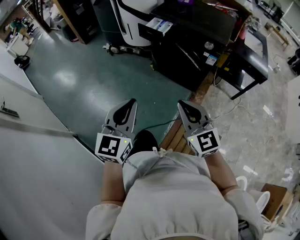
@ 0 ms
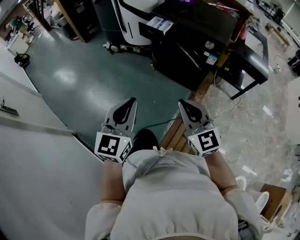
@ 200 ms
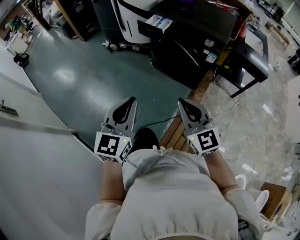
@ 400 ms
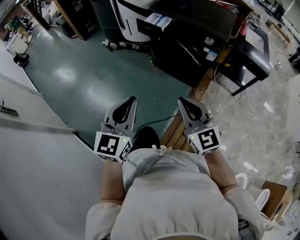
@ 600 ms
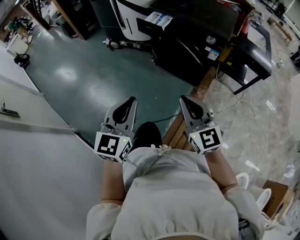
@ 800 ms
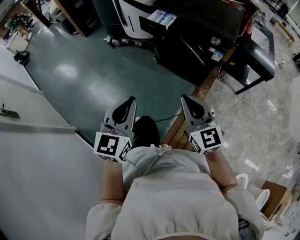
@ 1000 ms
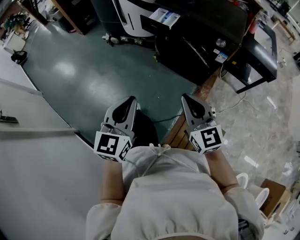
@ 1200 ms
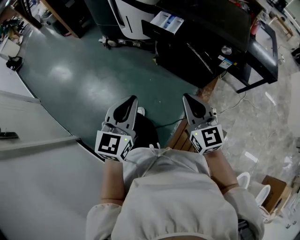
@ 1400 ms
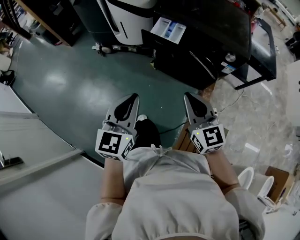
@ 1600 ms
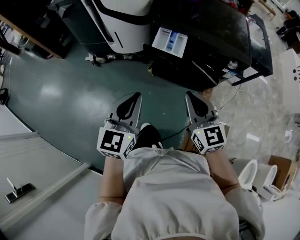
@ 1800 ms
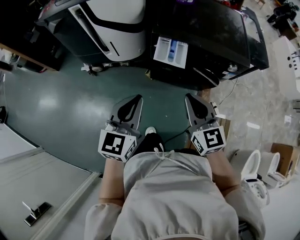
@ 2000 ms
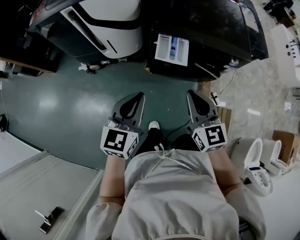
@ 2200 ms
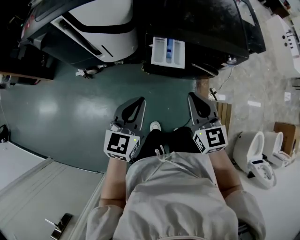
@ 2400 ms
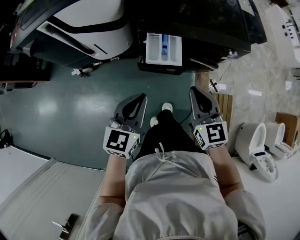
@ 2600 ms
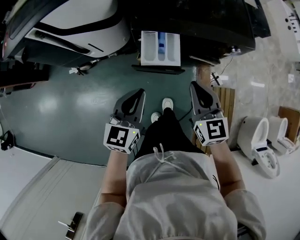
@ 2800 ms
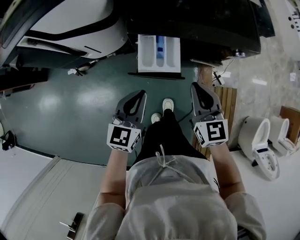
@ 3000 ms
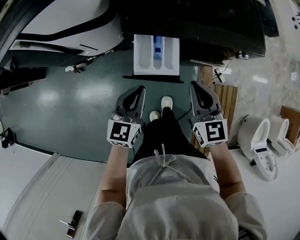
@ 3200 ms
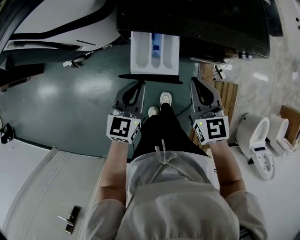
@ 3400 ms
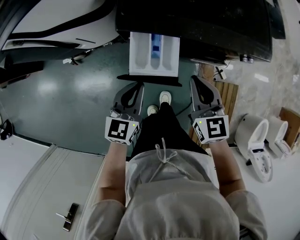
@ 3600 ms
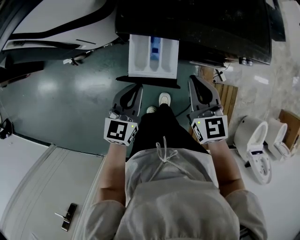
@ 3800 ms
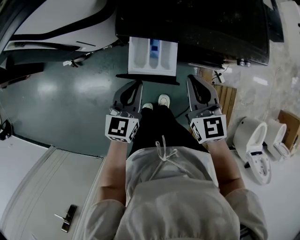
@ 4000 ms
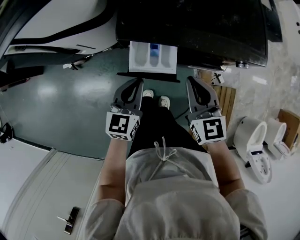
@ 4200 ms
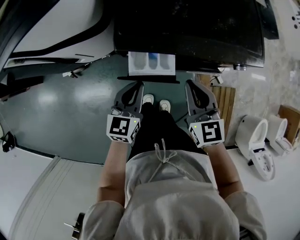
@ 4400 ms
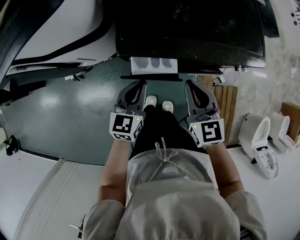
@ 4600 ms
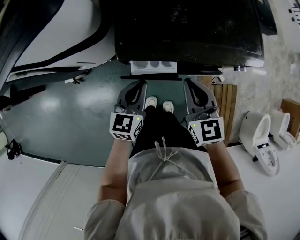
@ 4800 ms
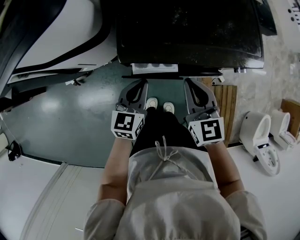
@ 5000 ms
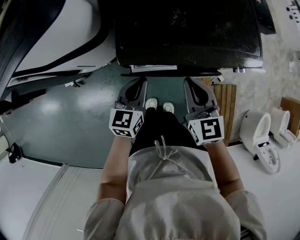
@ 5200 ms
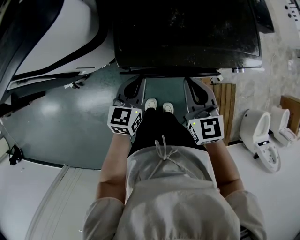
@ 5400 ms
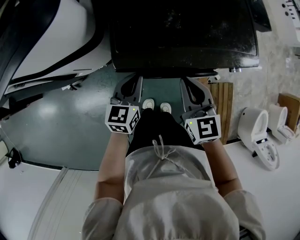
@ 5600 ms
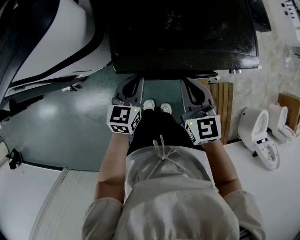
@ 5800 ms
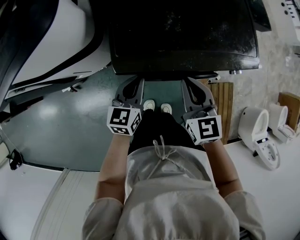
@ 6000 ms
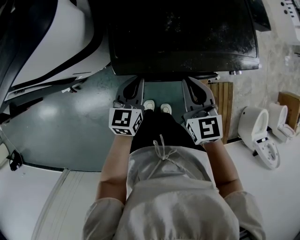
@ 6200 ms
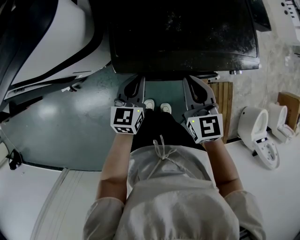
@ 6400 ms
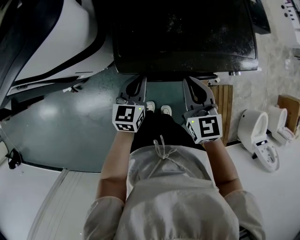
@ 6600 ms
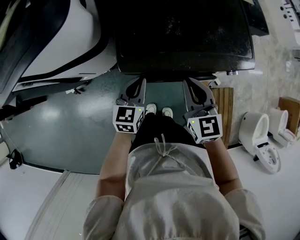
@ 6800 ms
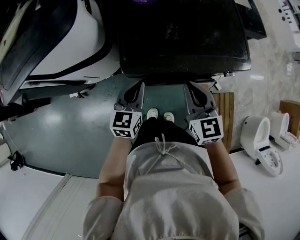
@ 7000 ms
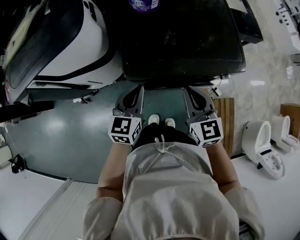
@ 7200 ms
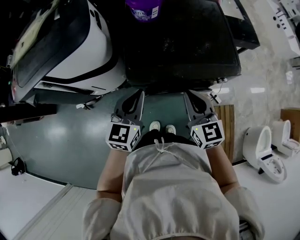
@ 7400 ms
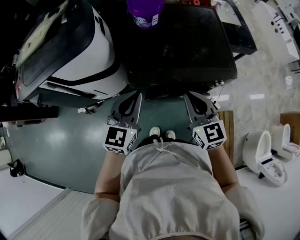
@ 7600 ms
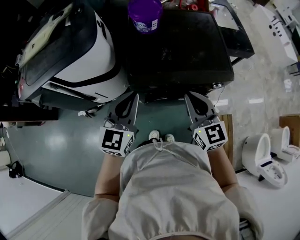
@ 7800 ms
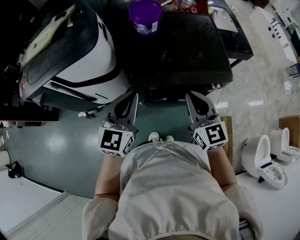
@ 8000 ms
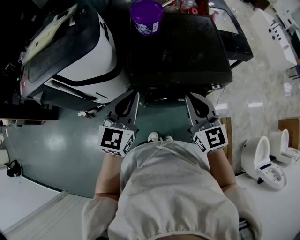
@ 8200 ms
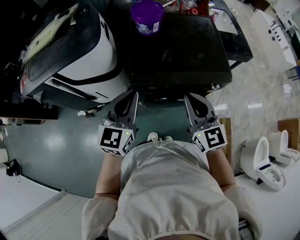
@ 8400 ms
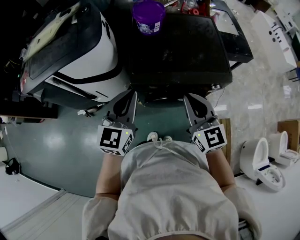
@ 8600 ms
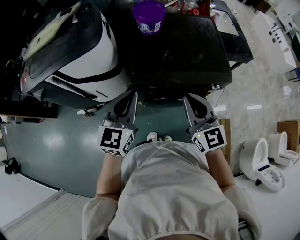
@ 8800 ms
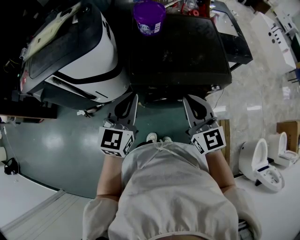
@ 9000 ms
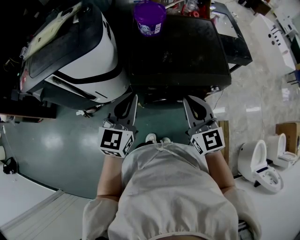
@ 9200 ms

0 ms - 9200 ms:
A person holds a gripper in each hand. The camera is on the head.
0 ms - 1600 ms: Both grippers travel together forward, approximately 25 cm.
1600 ms - 3000 ms: The right gripper ends up about 25 cm from where it was, and changes its angle by roughly 30 degrees. The left gripper moves some 30 cm, and swivels roughly 30 degrees.
3000 ms - 4600 ms: The left gripper goes roughly 15 cm forward and downward; the right gripper travels forward by approximately 10 cm.
4600 ms - 6200 ms: The two grippers go approximately 5 cm forward.
6200 ms - 7600 ms: The right gripper moves upward and backward, some 15 cm, while the left gripper shifts some 20 cm upward.
7600 ms - 9200 ms: Both grippers travel together upward, approximately 5 cm.

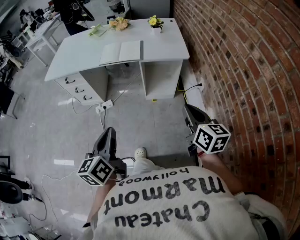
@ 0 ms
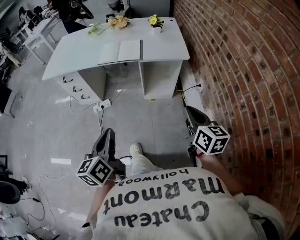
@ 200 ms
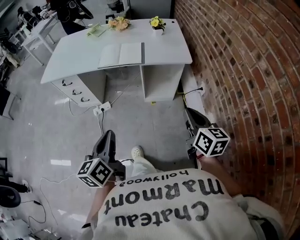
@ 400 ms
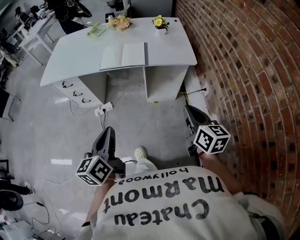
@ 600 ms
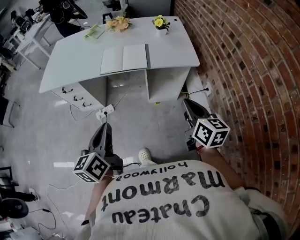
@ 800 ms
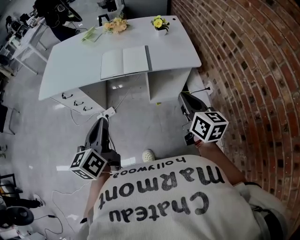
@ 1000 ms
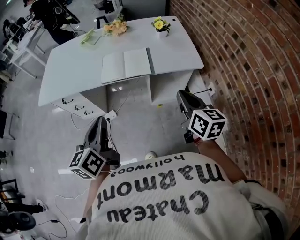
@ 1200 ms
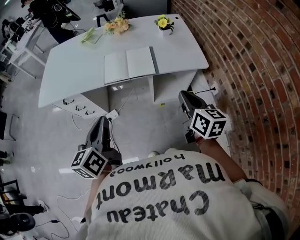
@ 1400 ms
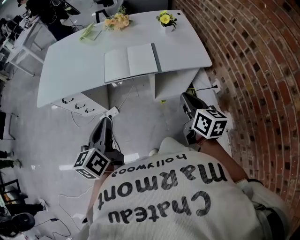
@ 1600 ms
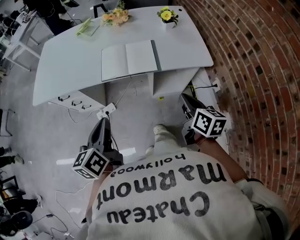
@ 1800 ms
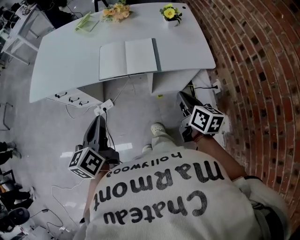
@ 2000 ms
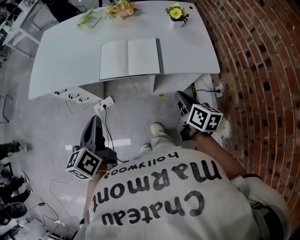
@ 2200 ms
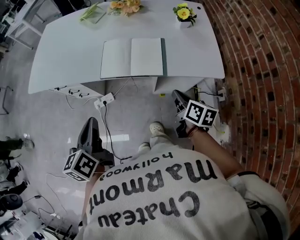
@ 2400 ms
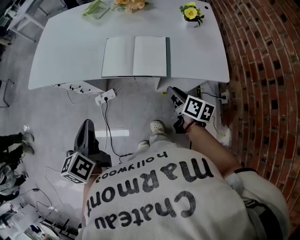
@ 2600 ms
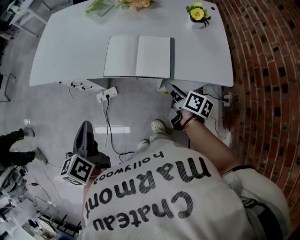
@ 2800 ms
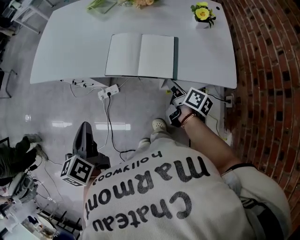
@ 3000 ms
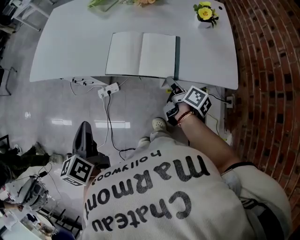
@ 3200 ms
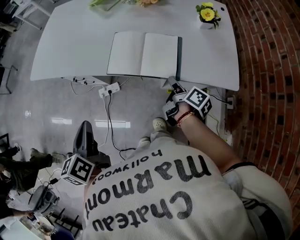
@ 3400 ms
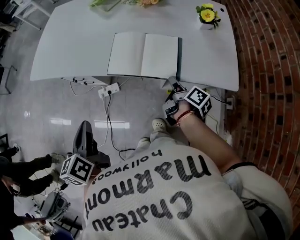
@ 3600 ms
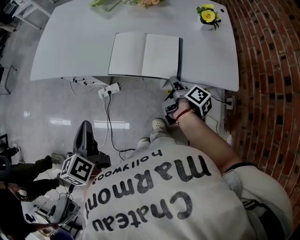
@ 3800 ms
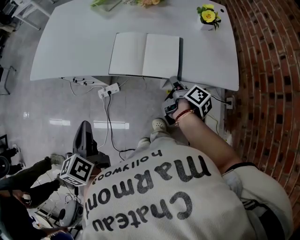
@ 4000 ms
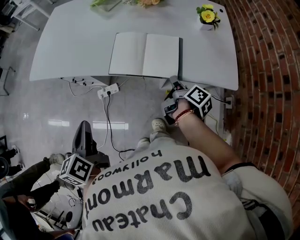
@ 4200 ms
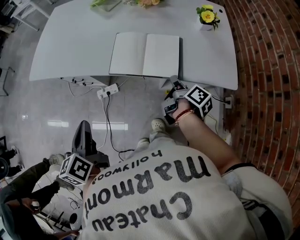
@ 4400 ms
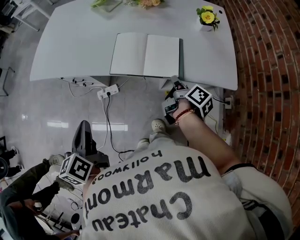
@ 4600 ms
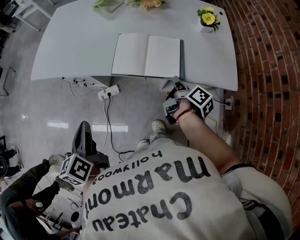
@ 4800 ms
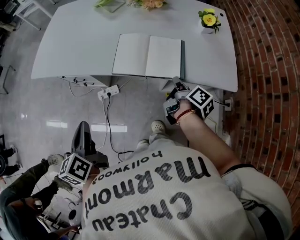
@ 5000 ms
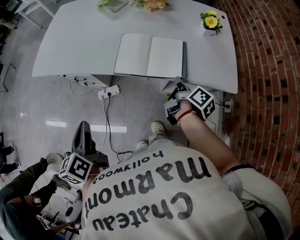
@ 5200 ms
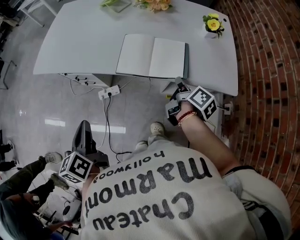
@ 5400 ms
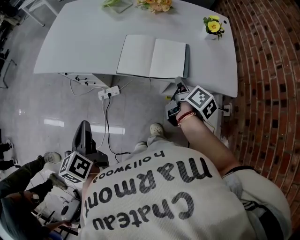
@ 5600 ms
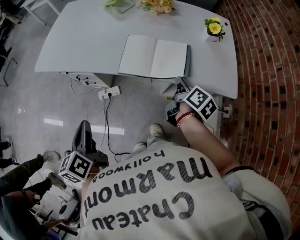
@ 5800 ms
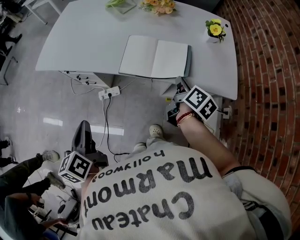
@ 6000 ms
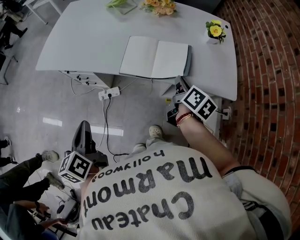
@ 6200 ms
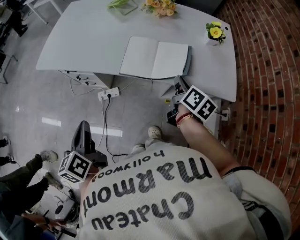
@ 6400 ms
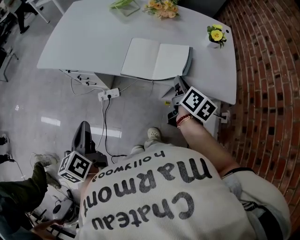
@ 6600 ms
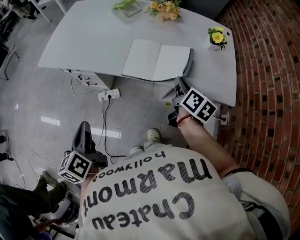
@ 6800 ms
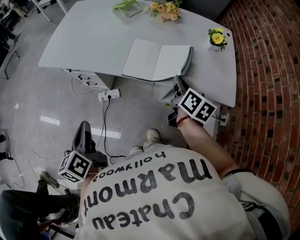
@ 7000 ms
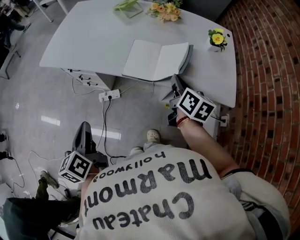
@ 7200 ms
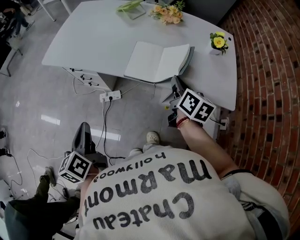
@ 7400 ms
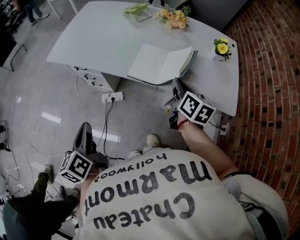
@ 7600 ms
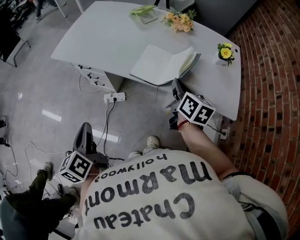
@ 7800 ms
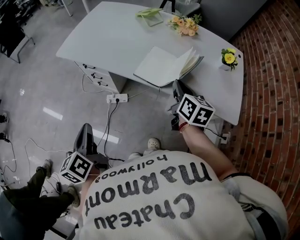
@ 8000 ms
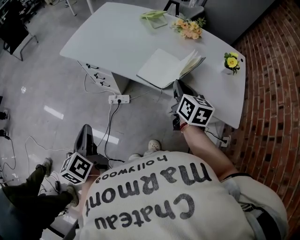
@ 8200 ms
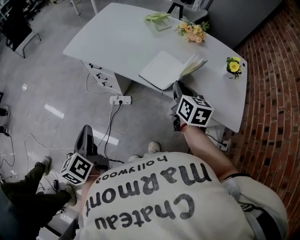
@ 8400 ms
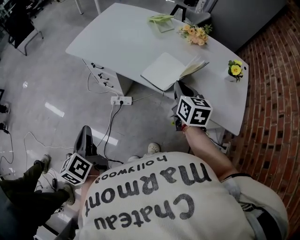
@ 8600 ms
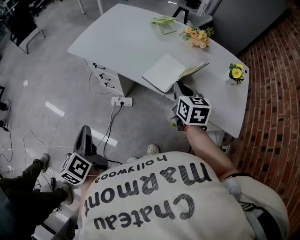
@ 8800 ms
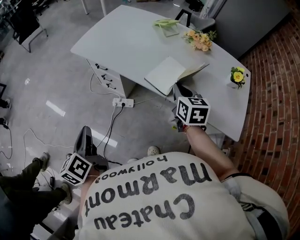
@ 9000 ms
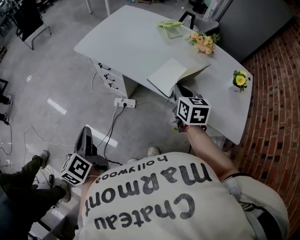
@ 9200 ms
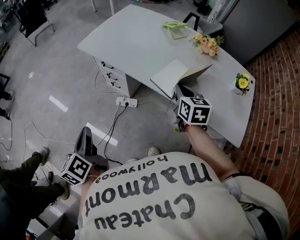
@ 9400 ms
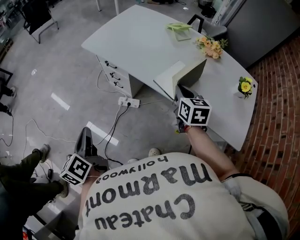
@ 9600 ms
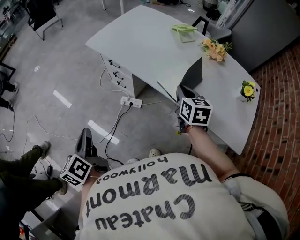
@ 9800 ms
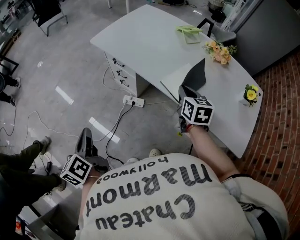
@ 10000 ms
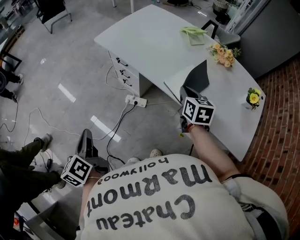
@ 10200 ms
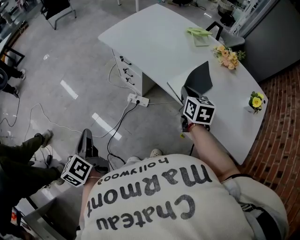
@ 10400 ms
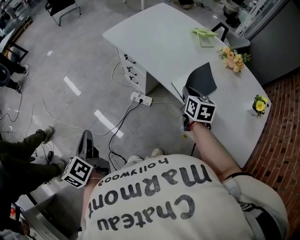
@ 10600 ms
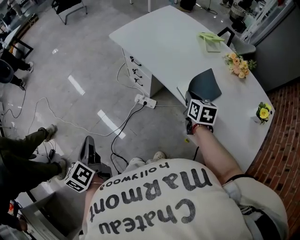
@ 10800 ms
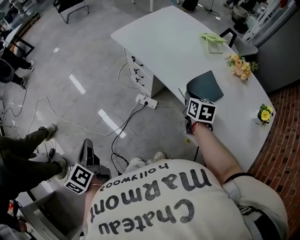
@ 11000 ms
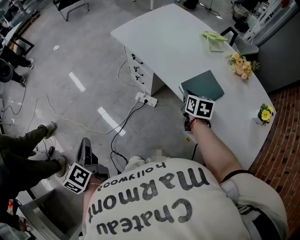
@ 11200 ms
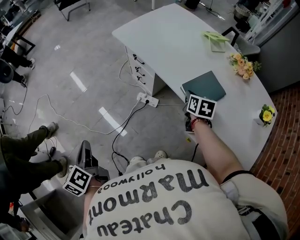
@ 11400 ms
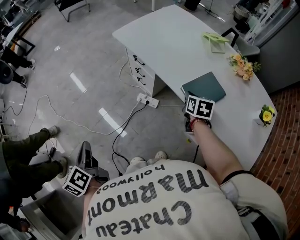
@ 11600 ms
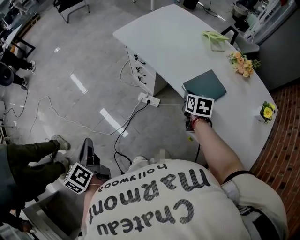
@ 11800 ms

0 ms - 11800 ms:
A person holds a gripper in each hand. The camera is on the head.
0 ms - 1400 ms: The grippers both shift forward and to the left by about 30 cm.
1400 ms - 3000 ms: The right gripper travels forward and downward by some 30 cm, swivels roughly 40 degrees, and opens; the left gripper goes approximately 10 cm forward, downward and to the left, and changes its angle by approximately 30 degrees.
3000 ms - 4400 ms: The right gripper closes its fingers.
4400 ms - 6000 ms: The right gripper goes some 5 cm upward, and changes its angle by about 30 degrees.
6000 ms - 7400 ms: The right gripper goes approximately 5 cm upward, and changes its angle by approximately 20 degrees.
7400 ms - 8800 ms: Both grippers travel together to the left, roughly 10 cm. The right gripper rotates some 30 degrees.
8800 ms - 10400 ms: The left gripper heads to the left, covering approximately 5 cm. Meanwhile the right gripper heads forward and to the left, covering some 10 cm.
10400 ms - 11800 ms: The left gripper is displaced to the left by roughly 5 cm. The right gripper shifts roughly 5 cm downward.

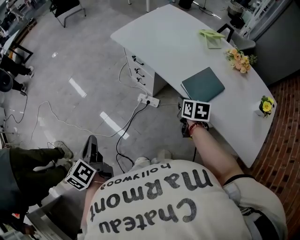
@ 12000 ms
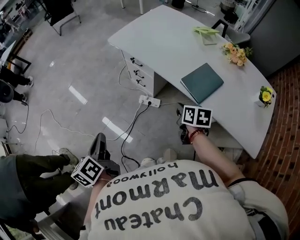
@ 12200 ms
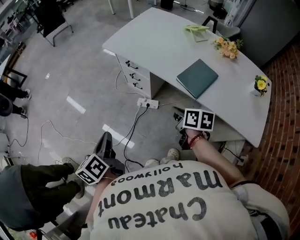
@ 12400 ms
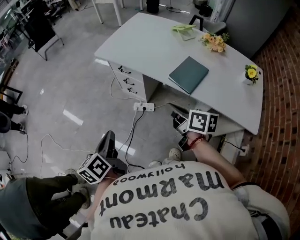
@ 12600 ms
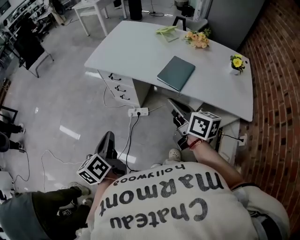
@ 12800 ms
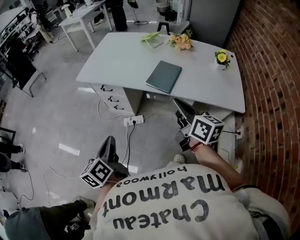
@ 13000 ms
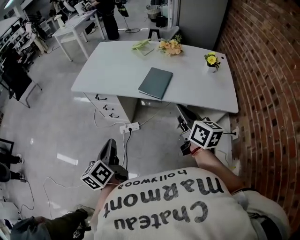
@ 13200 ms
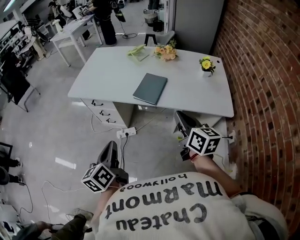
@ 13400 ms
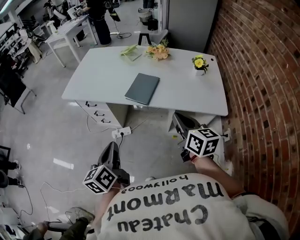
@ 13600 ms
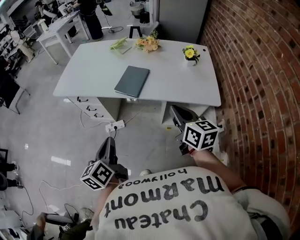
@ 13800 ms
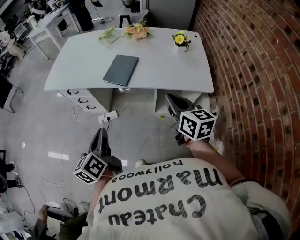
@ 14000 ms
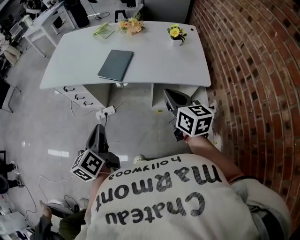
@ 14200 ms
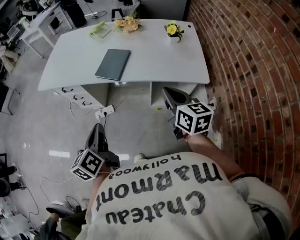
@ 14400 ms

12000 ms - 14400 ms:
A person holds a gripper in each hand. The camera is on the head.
12000 ms - 13200 ms: The right gripper ends up some 30 cm from where it was, and points its fingers approximately 40 degrees further upward. The left gripper ends up about 15 cm from where it was, and turns by roughly 40 degrees.
13200 ms - 14400 ms: Both grippers travel together to the right, approximately 15 cm.
